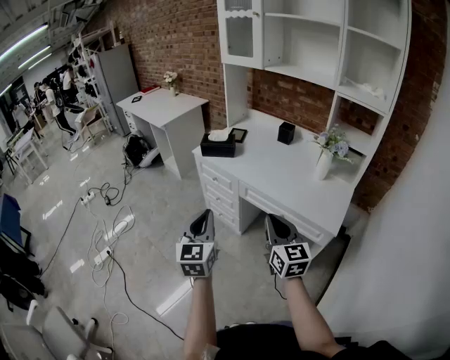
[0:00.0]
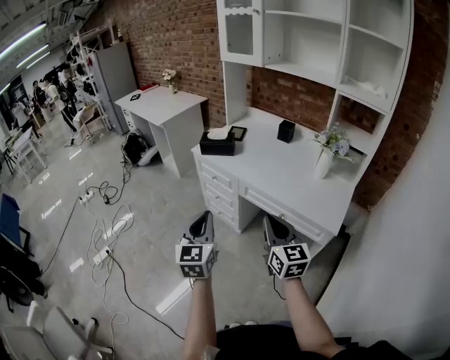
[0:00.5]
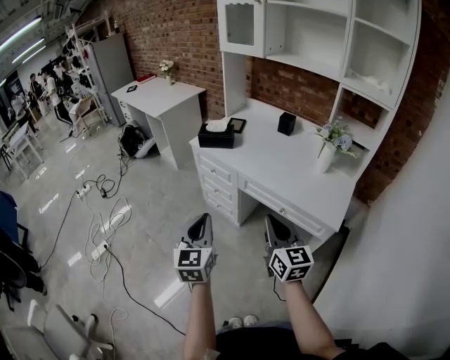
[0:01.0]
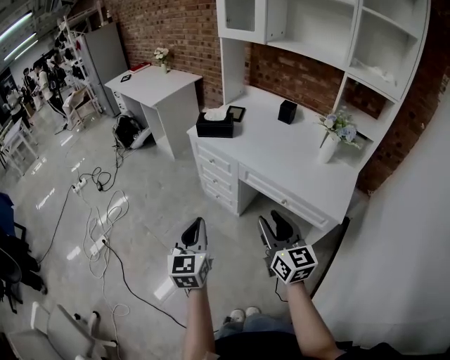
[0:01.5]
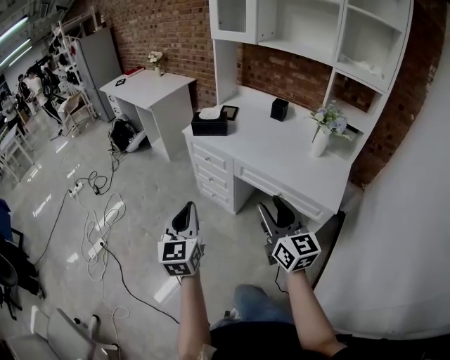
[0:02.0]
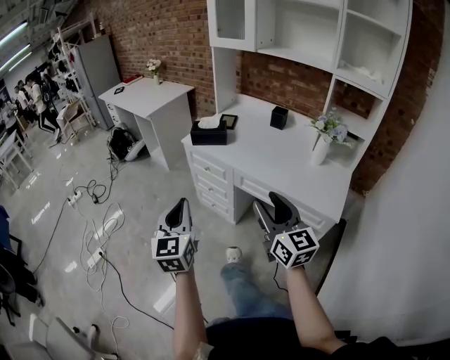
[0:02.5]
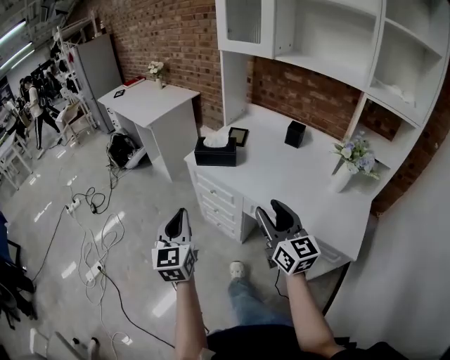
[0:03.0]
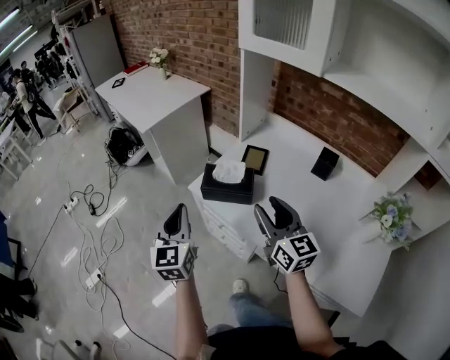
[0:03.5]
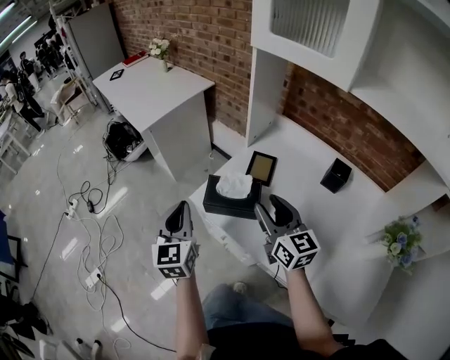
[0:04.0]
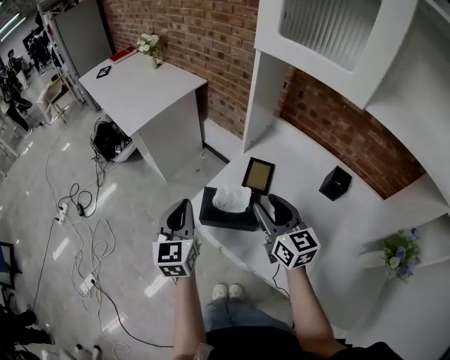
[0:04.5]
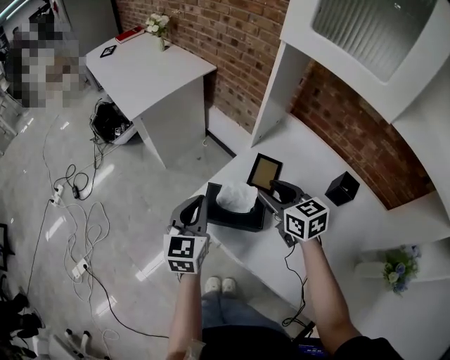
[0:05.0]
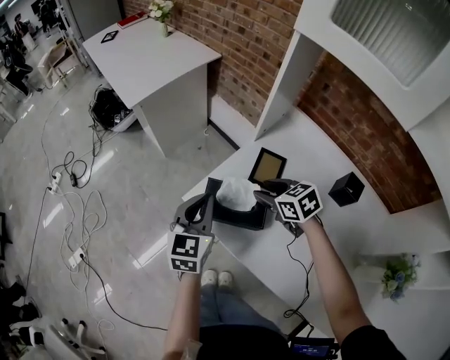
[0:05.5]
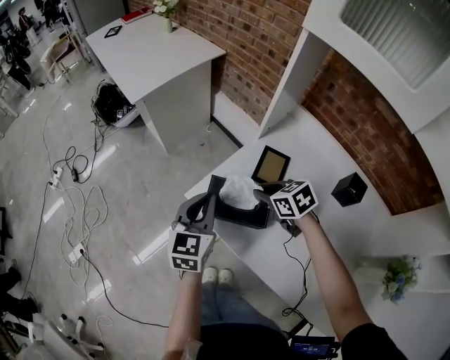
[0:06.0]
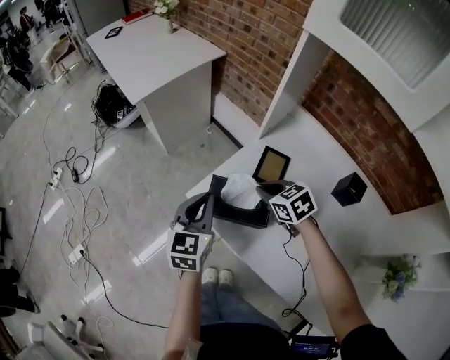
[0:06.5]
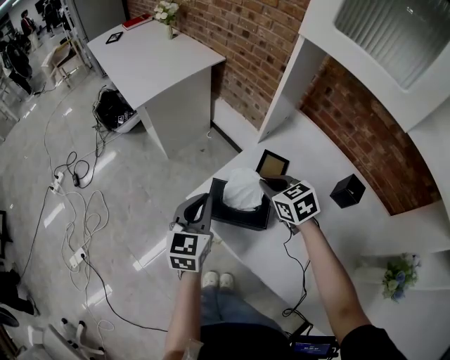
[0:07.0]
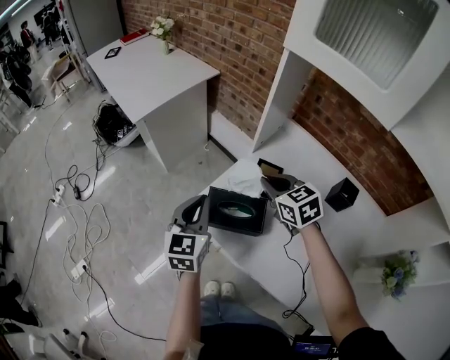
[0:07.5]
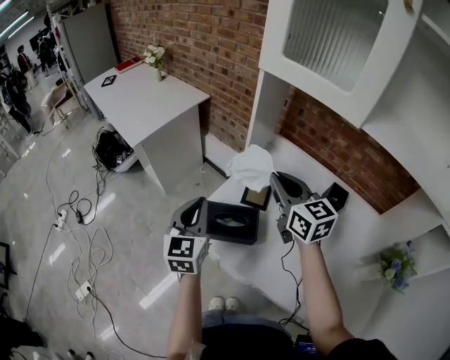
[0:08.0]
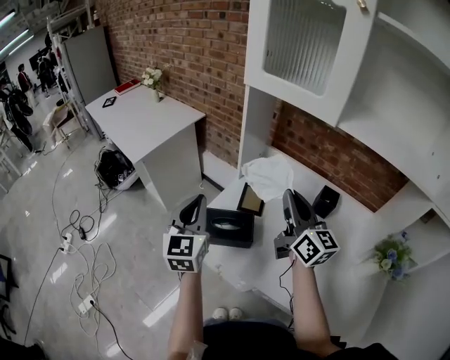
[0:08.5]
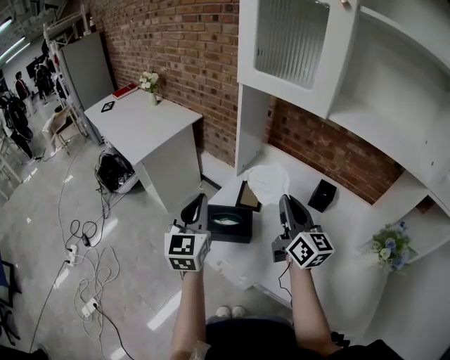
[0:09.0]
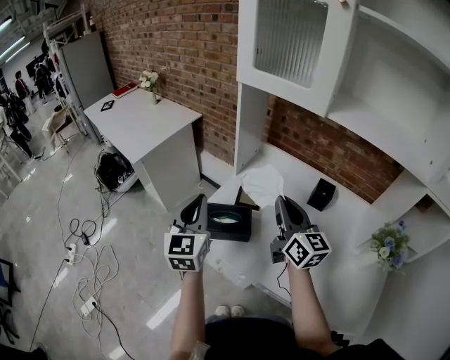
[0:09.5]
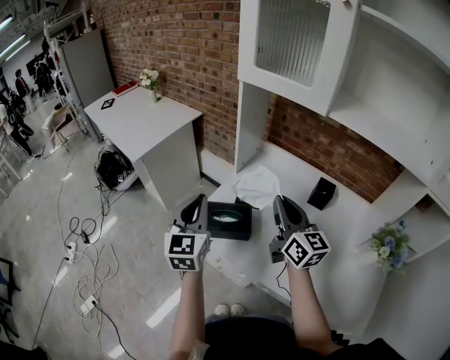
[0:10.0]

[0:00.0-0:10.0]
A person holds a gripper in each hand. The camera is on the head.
0:00.0 to 0:02.0: The right gripper opens its fingers. The left gripper shifts roughly 5 cm to the left.
0:02.0 to 0:04.0: Both grippers are carried forward, roughly 60 cm.
0:04.0 to 0:06.0: The right gripper moves downward and forward, some 20 cm, tips its fingers downward by some 40 degrees, and closes, while the left gripper travels forward, downward and to the right by about 15 cm.
0:06.0 to 0:08.0: The right gripper is displaced upward by about 25 cm, and angles its fingers upward, by approximately 40 degrees. Meanwhile the left gripper travels upward by approximately 10 cm.
0:08.0 to 0:10.0: The left gripper travels upward by about 5 cm. The right gripper is displaced backward by some 10 cm.

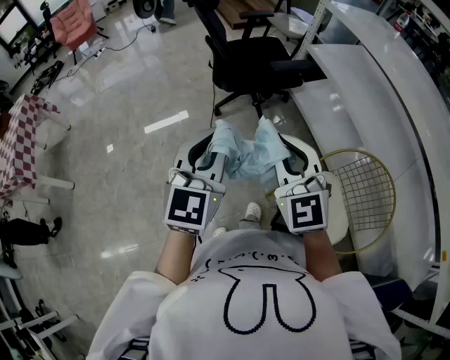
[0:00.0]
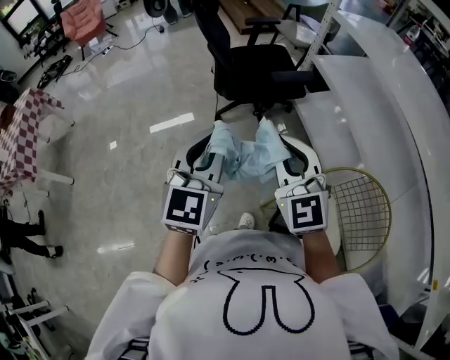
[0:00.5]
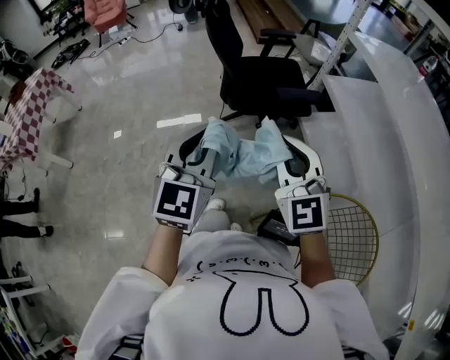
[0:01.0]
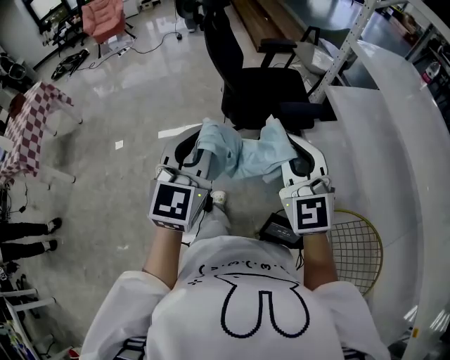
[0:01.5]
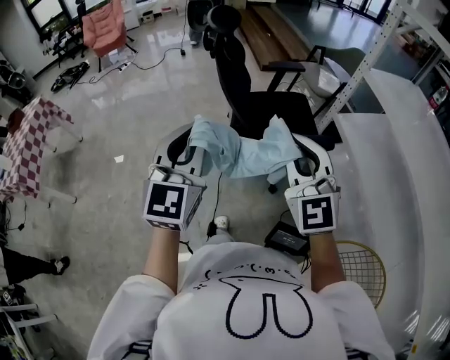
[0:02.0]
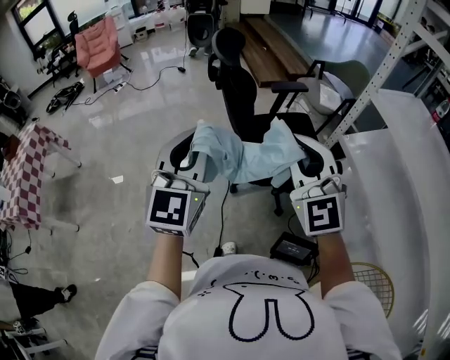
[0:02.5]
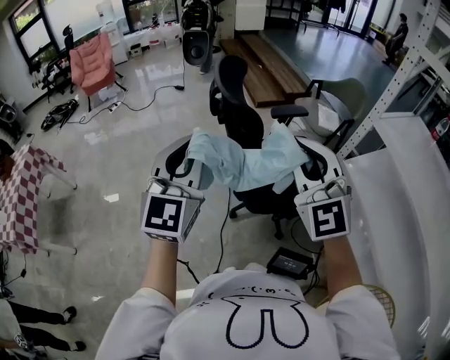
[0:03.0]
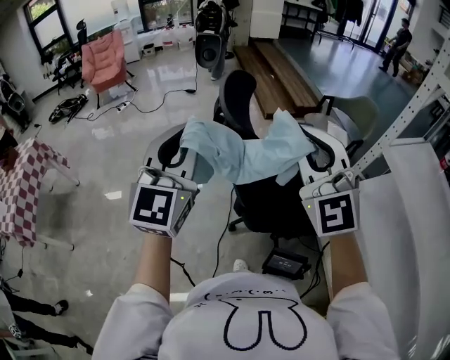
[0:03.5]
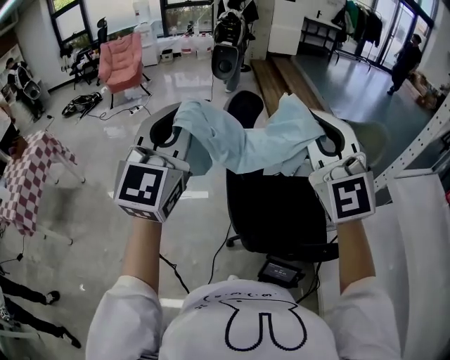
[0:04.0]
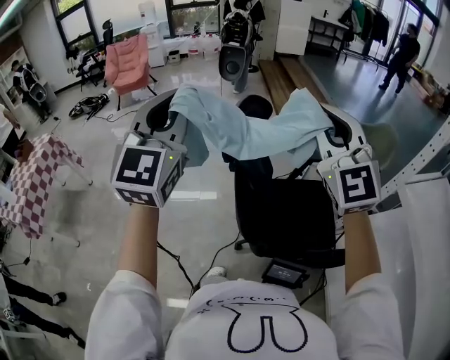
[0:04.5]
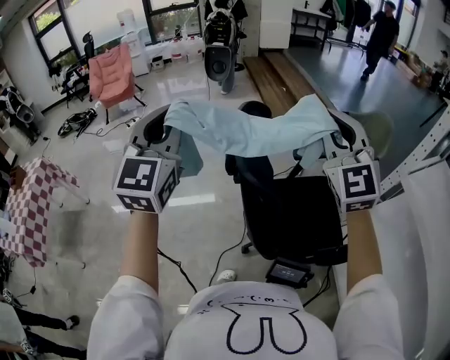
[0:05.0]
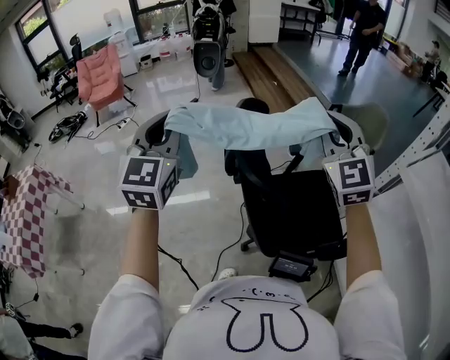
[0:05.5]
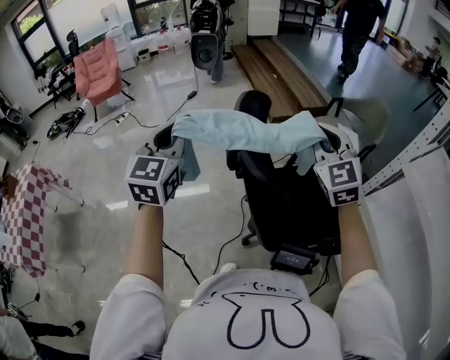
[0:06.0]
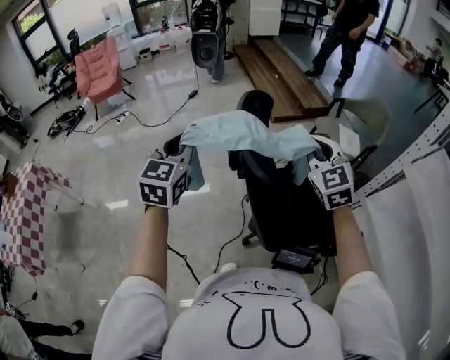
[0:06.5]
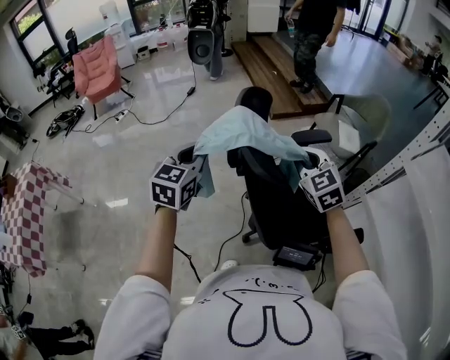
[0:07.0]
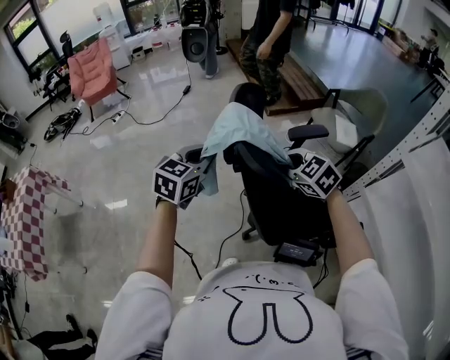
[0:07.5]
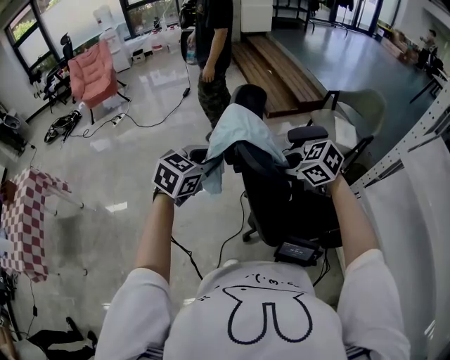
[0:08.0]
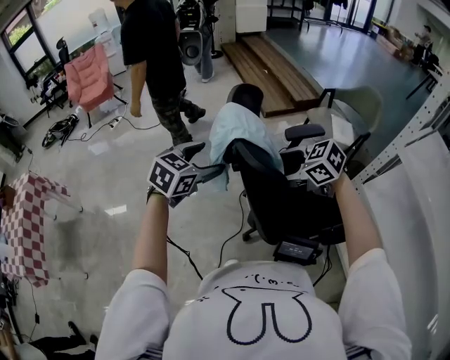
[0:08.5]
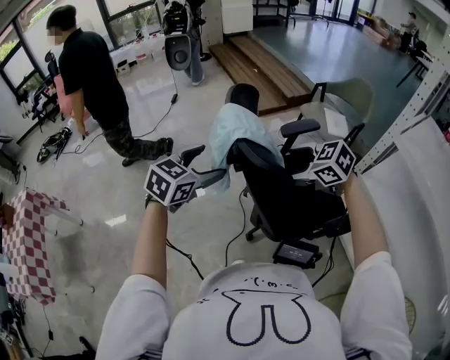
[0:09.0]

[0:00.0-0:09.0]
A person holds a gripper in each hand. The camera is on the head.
0:00.0 to 0:02.0: Both grippers move forward, some 30 cm.
0:02.0 to 0:04.5: Both grippers travel together forward, approximately 40 cm.
0:04.5 to 0:07.0: The left gripper heads downward and forward, covering some 25 cm, and swivels roughly 40 degrees; the right gripper is displaced downward by some 25 cm, and angles its fingers downward, by some 30 degrees.
0:07.0 to 0:09.0: The left gripper shifts by approximately 5 cm, changes its angle by some 30 degrees, and opens up, while the right gripper shifts roughly 5 cm backward, changes its angle by roughly 40 degrees, and opens.

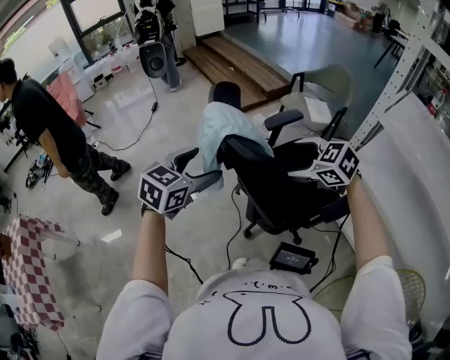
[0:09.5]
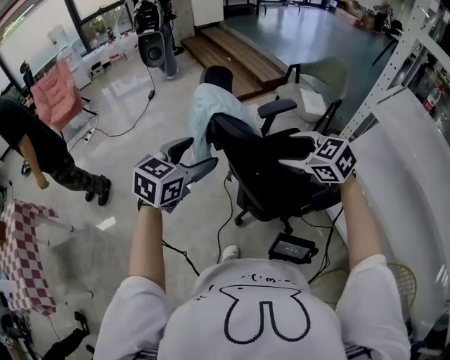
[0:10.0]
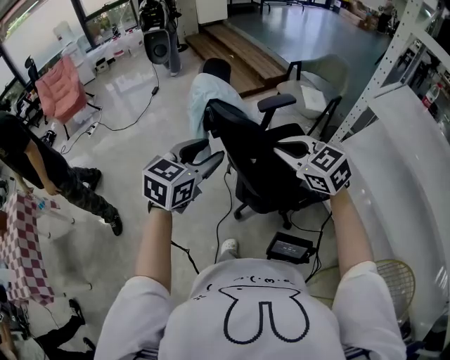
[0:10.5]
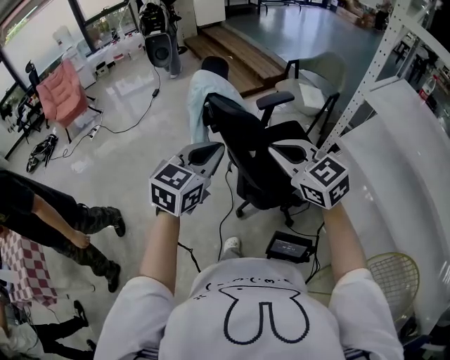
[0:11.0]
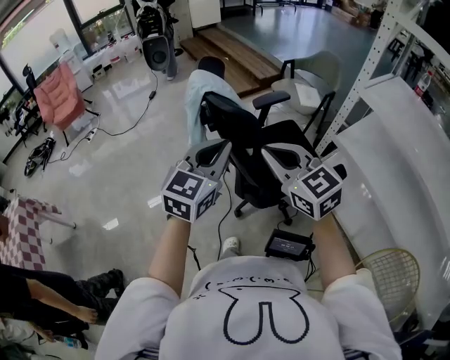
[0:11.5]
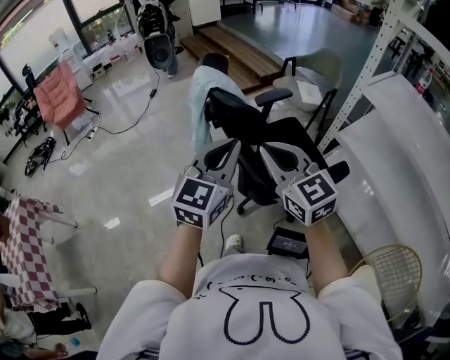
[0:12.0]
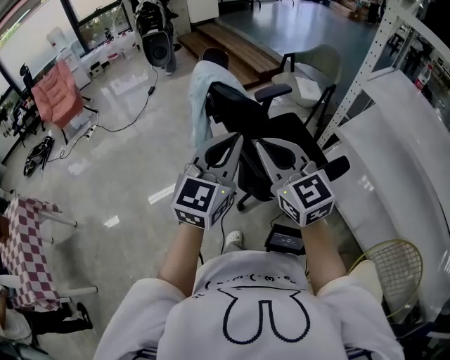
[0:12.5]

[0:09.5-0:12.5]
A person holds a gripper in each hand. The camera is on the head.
0:09.5 to 0:11.0: The left gripper heads backward and to the right, covering roughly 15 cm, and closes; the right gripper goes roughly 15 cm backward and upward, rotates roughly 30 degrees, and closes up.
0:11.0 to 0:12.5: The left gripper changes place by roughly 5 cm. The right gripper changes place by about 5 cm.

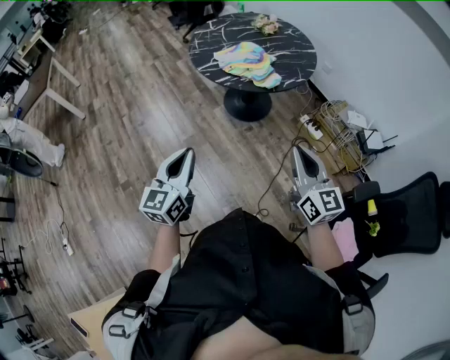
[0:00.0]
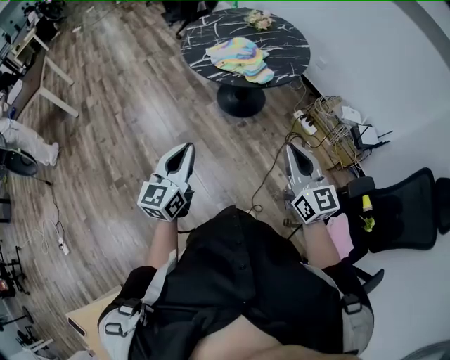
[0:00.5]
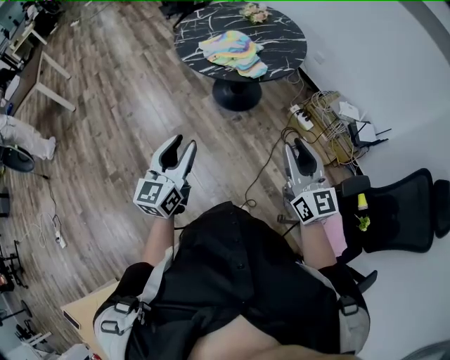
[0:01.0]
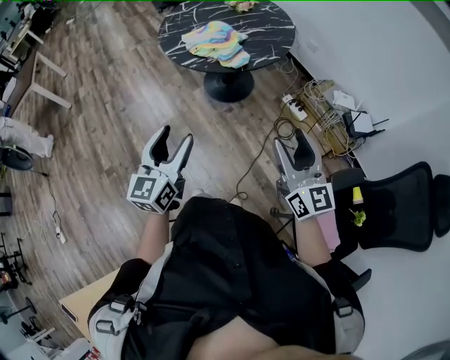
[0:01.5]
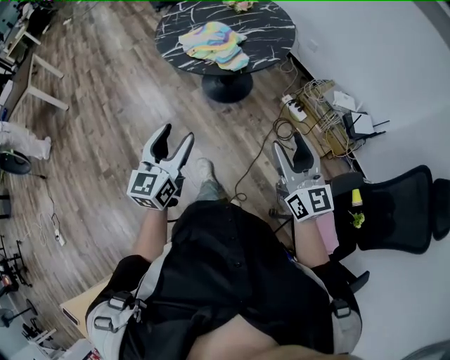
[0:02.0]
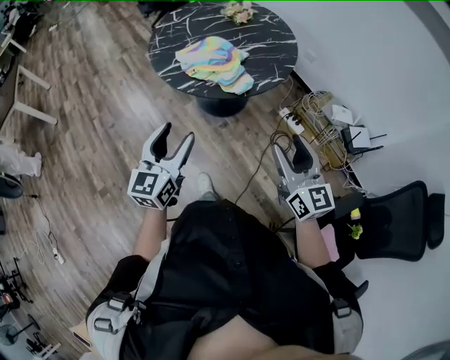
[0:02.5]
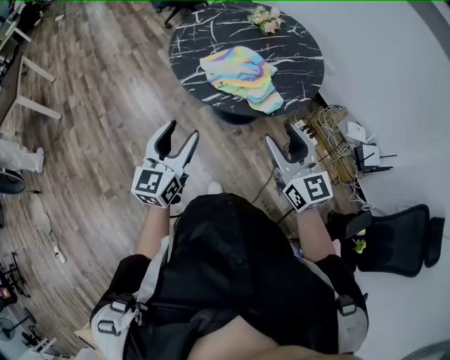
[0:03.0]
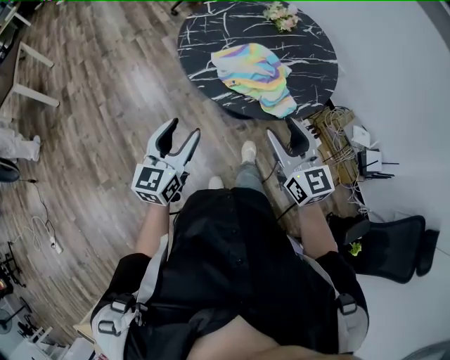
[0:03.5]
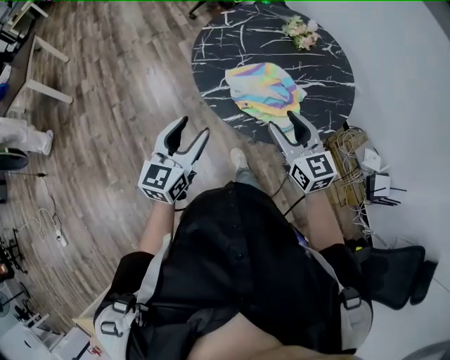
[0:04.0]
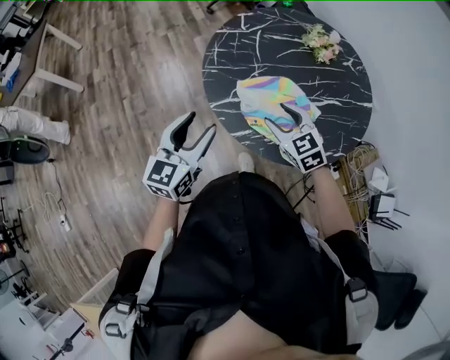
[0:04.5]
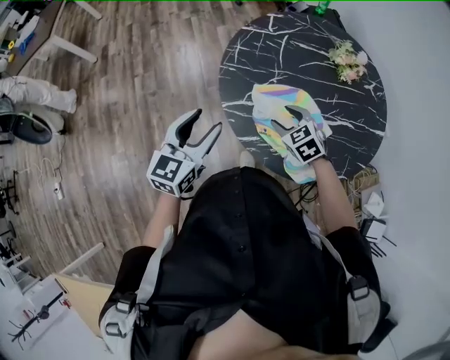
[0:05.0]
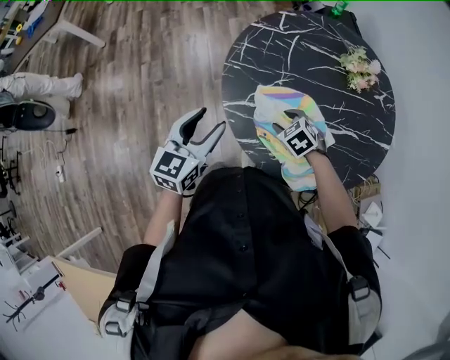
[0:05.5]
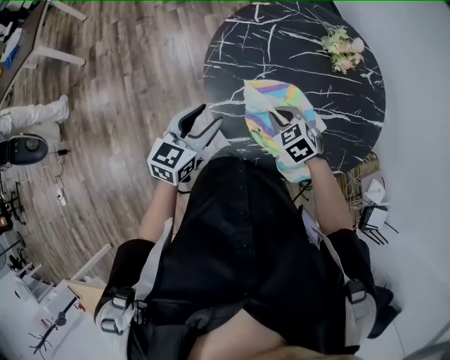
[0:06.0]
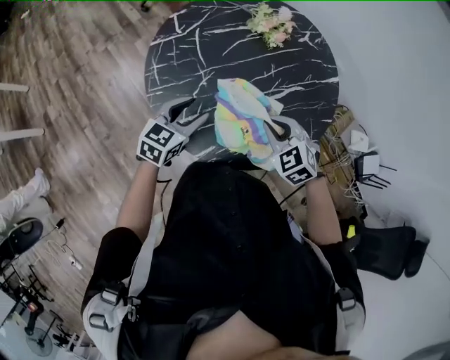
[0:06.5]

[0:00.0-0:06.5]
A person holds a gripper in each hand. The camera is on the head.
0:00.0 to 0:02.0: The right gripper shifts roughly 10 cm to the right, and opens its fingers; the left gripper goes approximately 15 cm to the right and forward, and opens its fingers.
0:02.0 to 0:04.5: The pair of grippers is taken forward, some 50 cm. The right gripper angles its fingers downward, by some 40 degrees.
0:04.5 to 0:06.5: The left gripper changes place by about 20 cm, and turns by about 40 degrees; the right gripper reaches about 15 cm downward, then returns, changes its angle by some 20 degrees, and closes its fingers.
